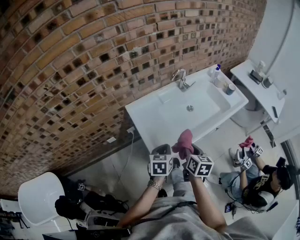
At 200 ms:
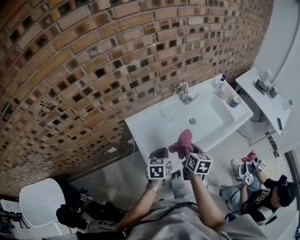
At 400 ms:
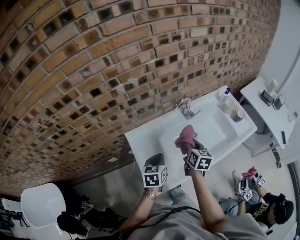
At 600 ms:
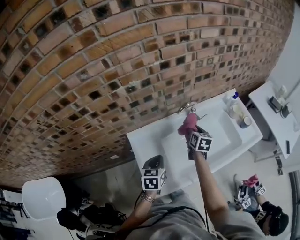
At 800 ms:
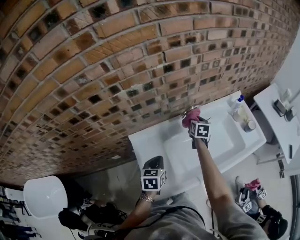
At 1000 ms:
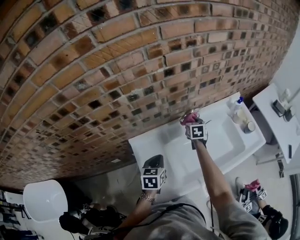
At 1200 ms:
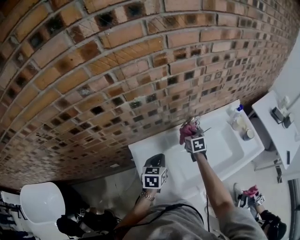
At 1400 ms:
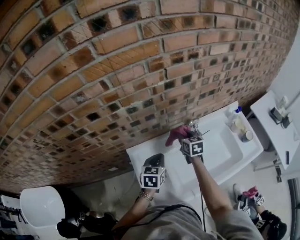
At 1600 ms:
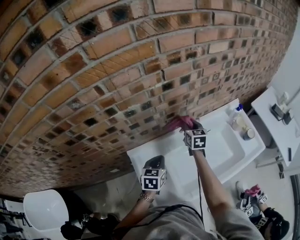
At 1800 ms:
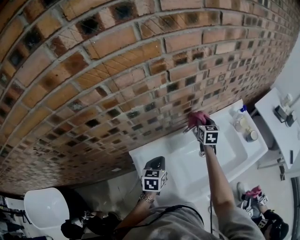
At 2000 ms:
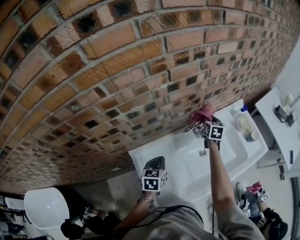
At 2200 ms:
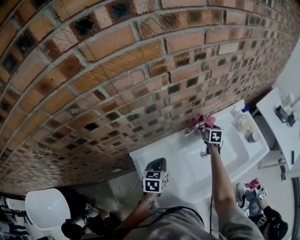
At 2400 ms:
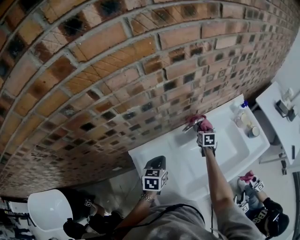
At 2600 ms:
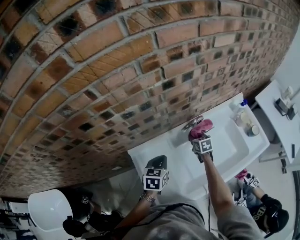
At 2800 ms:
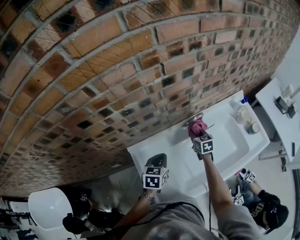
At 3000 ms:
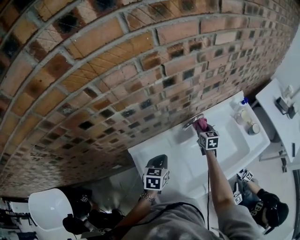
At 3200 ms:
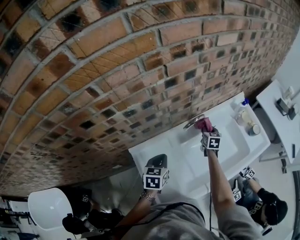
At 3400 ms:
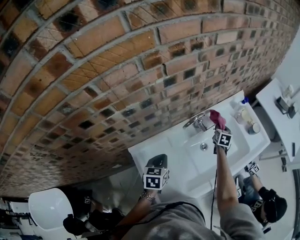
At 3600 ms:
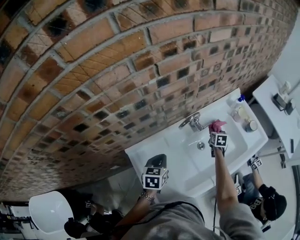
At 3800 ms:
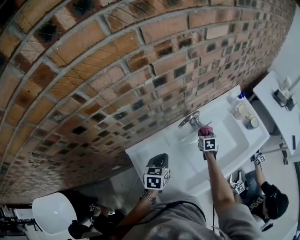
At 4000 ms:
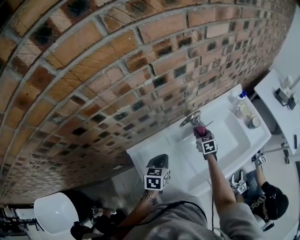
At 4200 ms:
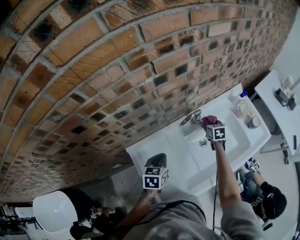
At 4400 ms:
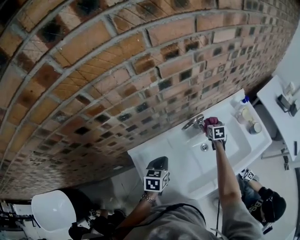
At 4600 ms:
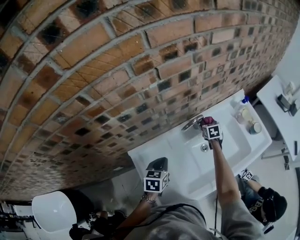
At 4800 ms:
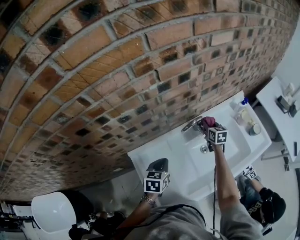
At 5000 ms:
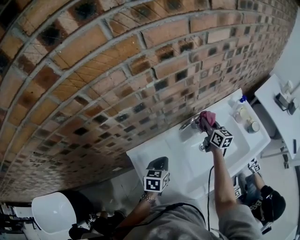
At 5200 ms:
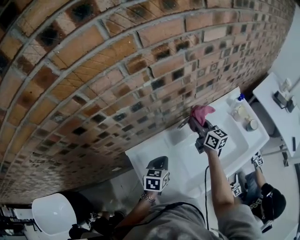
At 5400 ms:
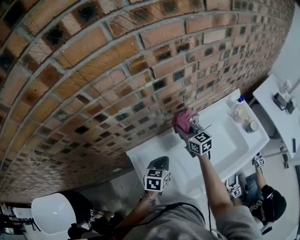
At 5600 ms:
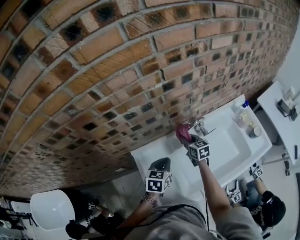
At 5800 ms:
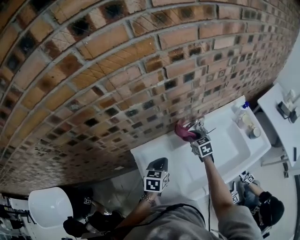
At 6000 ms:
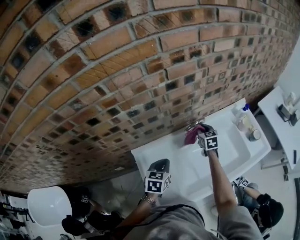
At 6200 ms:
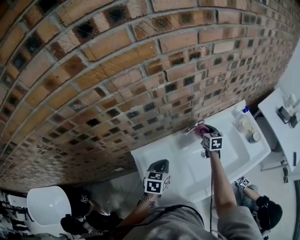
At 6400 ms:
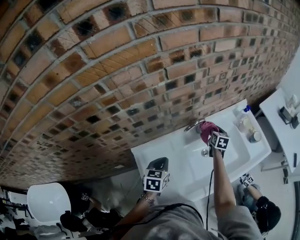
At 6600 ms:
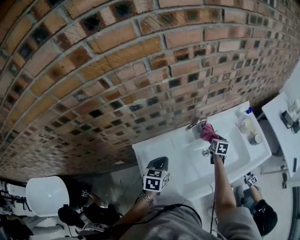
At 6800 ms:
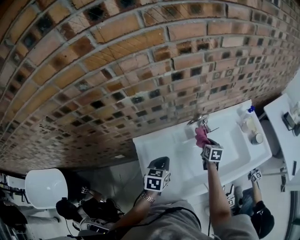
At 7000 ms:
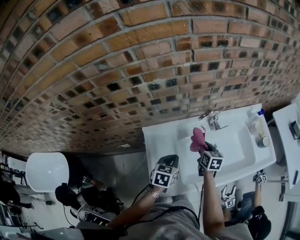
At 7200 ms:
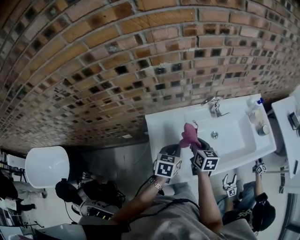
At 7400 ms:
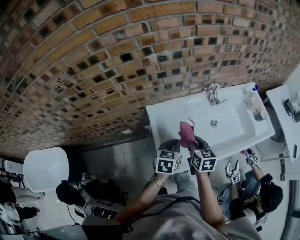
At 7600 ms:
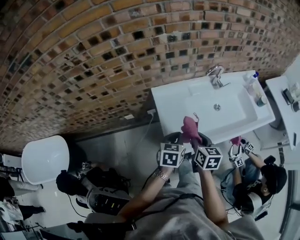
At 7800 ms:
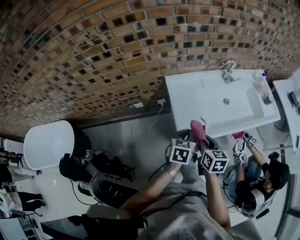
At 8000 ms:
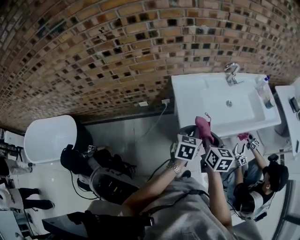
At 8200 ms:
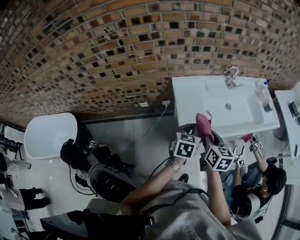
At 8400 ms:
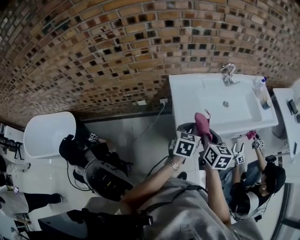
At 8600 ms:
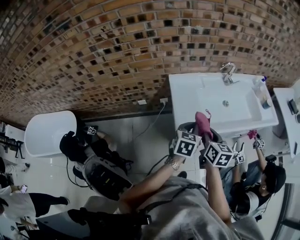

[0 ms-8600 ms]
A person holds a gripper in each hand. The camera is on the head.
0 ms to 1400 ms: The left gripper is displaced forward by roughly 30 cm. Meanwhile the right gripper shifts some 40 cm forward, and turns by some 30 degrees.
1400 ms to 2800 ms: The right gripper goes approximately 15 cm downward and to the right.
2800 ms to 4400 ms: The right gripper goes left and right, about 20 cm each way, reversing 2 times.
4400 ms to 5800 ms: The right gripper shifts approximately 20 cm to the left, backward and upward, and changes its angle by roughly 20 degrees.
5800 ms to 7200 ms: The right gripper shifts about 20 cm backward, while the left gripper shifts some 10 cm backward.
7200 ms to 8600 ms: The grippers both shift backward by some 25 cm.

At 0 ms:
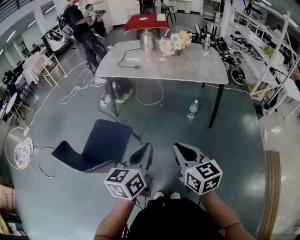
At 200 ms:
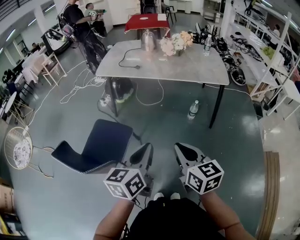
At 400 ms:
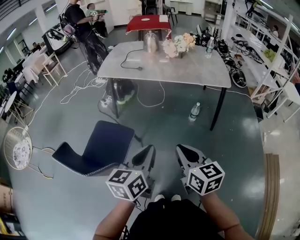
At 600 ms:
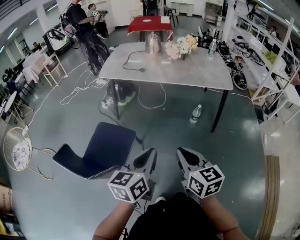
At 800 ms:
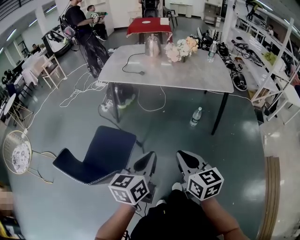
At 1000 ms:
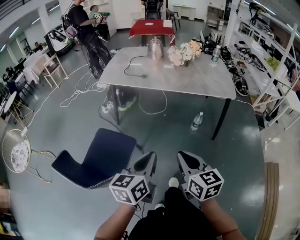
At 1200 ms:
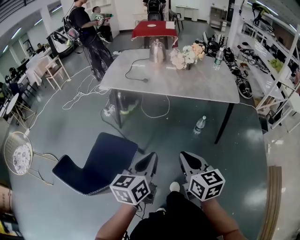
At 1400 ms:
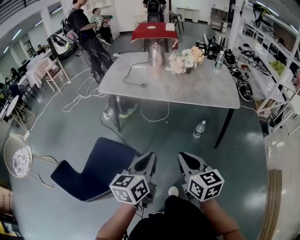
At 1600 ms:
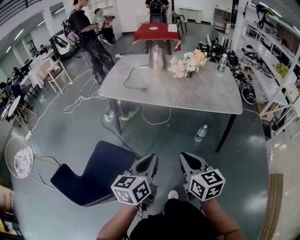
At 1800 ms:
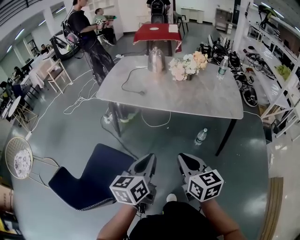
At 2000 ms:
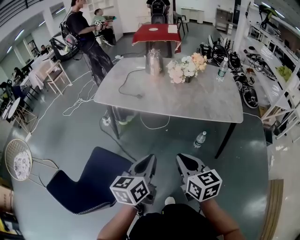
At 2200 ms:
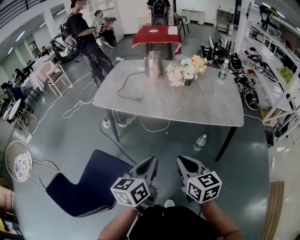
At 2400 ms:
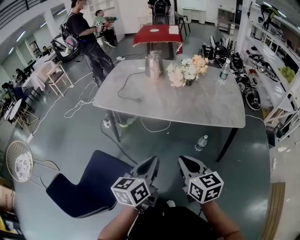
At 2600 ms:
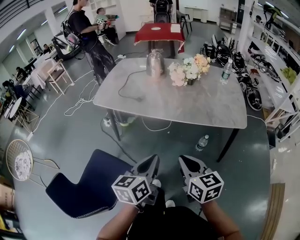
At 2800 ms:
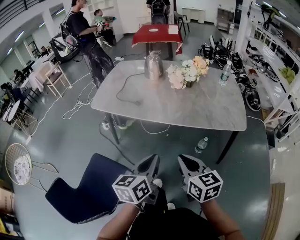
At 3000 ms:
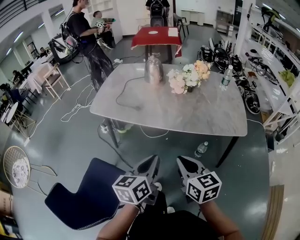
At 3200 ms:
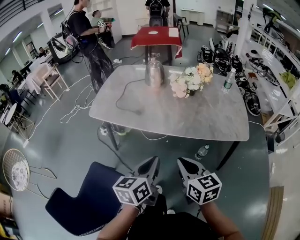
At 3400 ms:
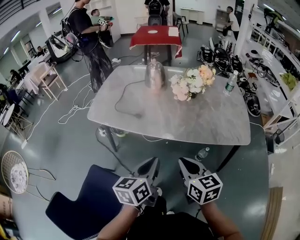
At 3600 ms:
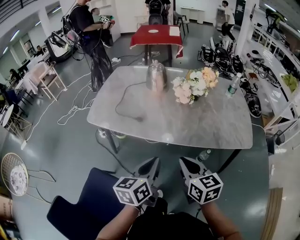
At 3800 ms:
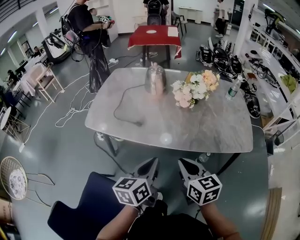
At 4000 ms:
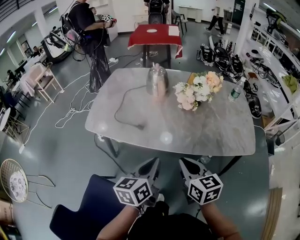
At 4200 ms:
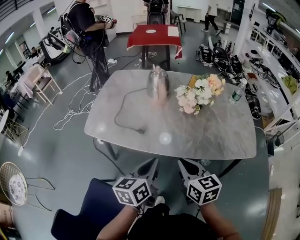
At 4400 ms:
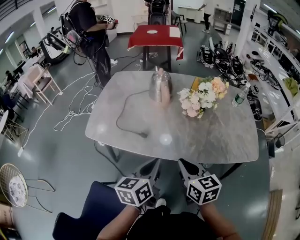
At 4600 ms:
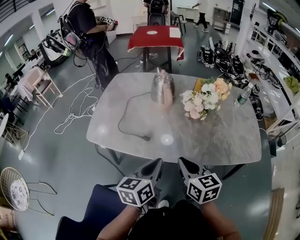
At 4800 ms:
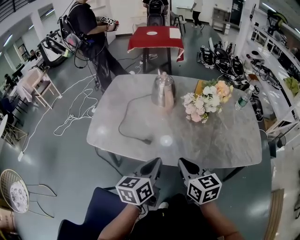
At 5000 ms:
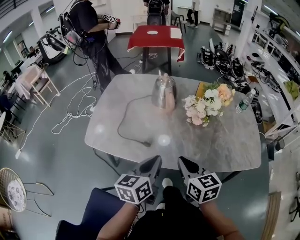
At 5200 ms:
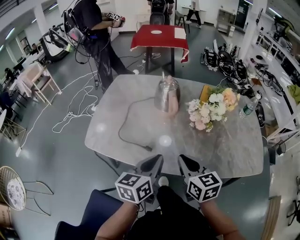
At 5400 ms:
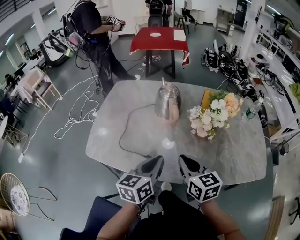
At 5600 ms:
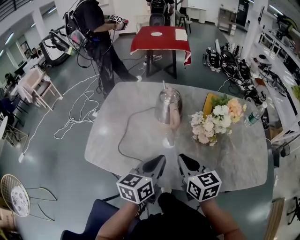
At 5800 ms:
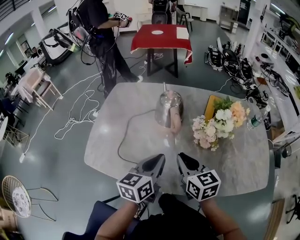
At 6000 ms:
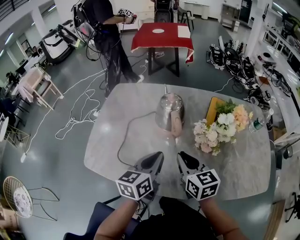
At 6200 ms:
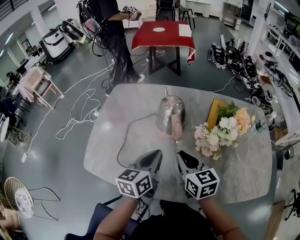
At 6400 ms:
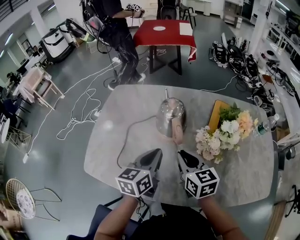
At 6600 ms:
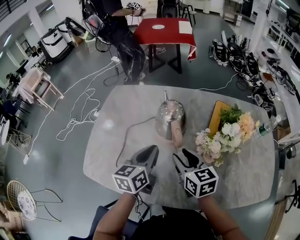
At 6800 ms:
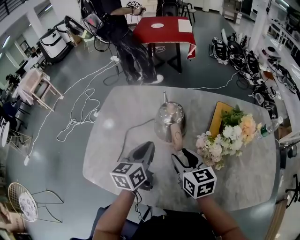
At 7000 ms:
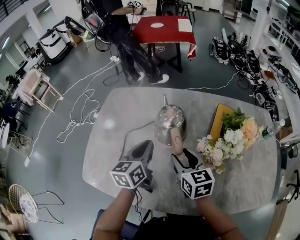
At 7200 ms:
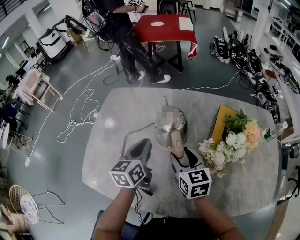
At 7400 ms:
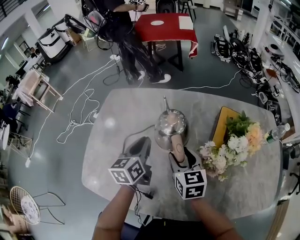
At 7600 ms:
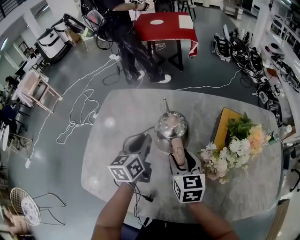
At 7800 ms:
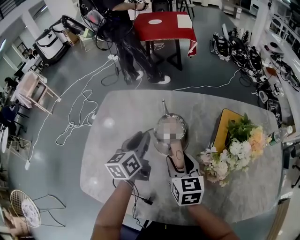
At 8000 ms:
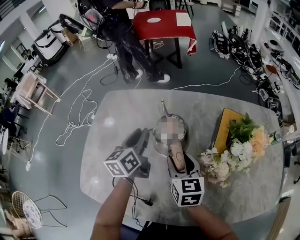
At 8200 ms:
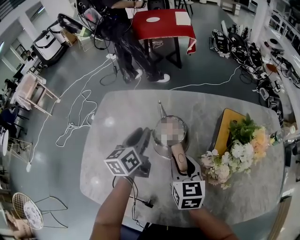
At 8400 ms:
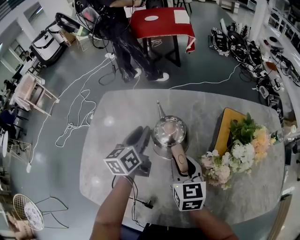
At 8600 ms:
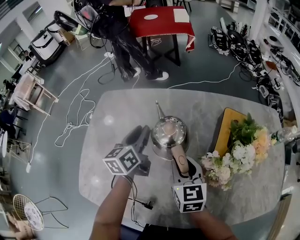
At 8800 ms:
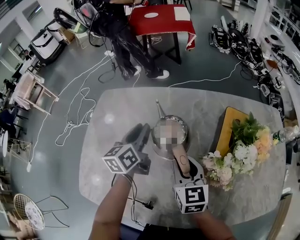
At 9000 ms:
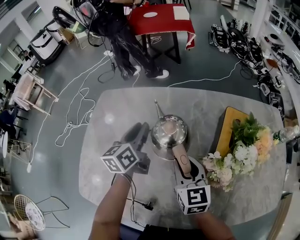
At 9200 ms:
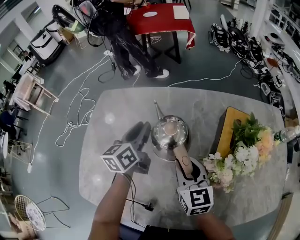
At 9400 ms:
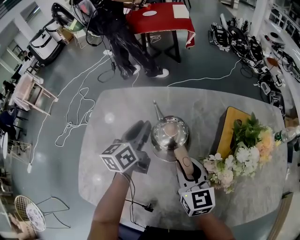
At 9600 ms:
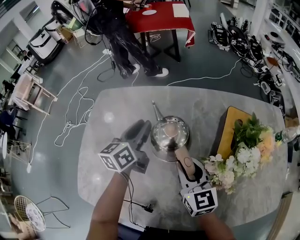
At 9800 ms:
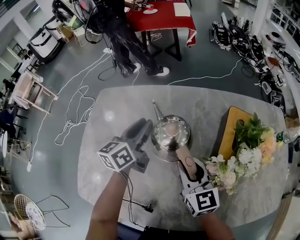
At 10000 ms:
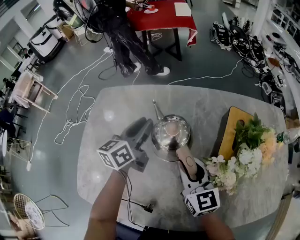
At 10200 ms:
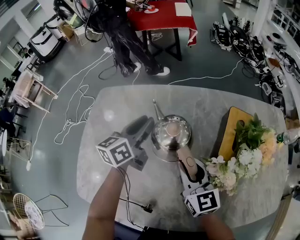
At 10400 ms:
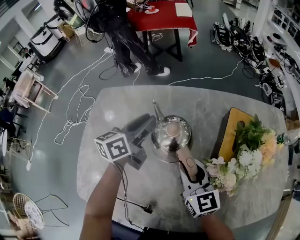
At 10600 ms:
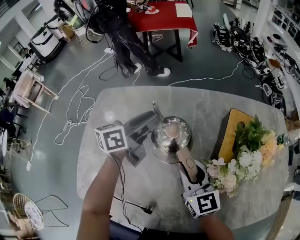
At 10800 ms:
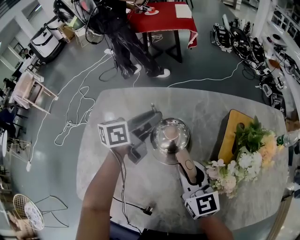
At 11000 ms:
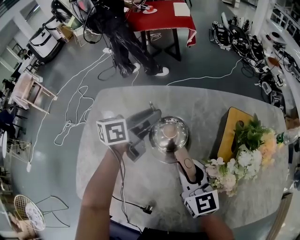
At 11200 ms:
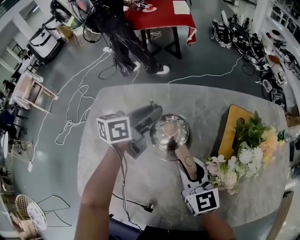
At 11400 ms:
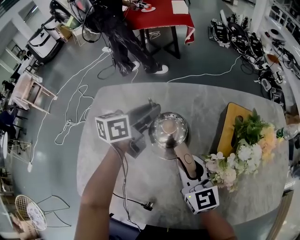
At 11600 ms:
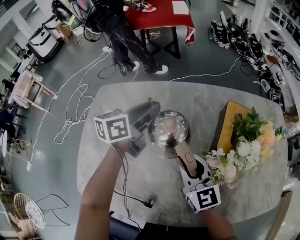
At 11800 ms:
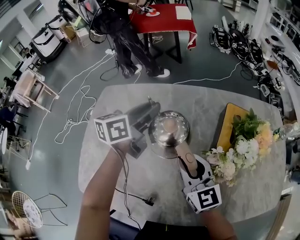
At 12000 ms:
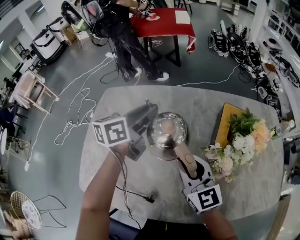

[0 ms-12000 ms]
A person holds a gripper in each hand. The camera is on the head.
0 ms to 1600 ms: The grippers both shift forward by approximately 20 cm.
1600 ms to 3000 ms: Both grippers move forward, roughly 15 cm.
3000 ms to 4400 ms: Both grippers move forward, about 20 cm.
4400 ms to 6000 ms: The two grippers go approximately 25 cm forward.
6000 ms to 7600 ms: The right gripper shifts about 15 cm forward and downward, and opens up. The left gripper goes some 20 cm forward.
7600 ms to 9000 ms: The left gripper moves forward, some 5 cm; the right gripper closes its fingers.
9000 ms to 10400 ms: The grippers stay close to where they were, moving slightly.
10400 ms to 12000 ms: Both grippers travel together upward, some 5 cm.

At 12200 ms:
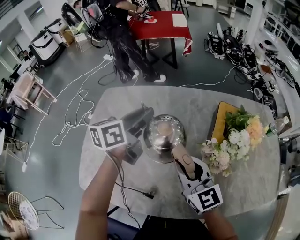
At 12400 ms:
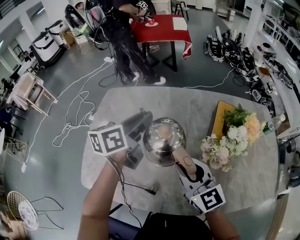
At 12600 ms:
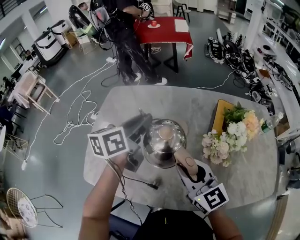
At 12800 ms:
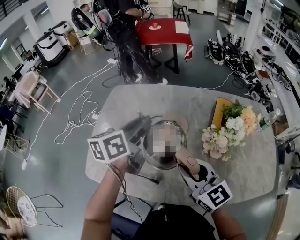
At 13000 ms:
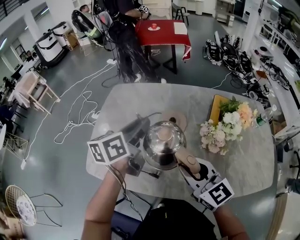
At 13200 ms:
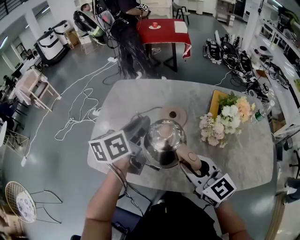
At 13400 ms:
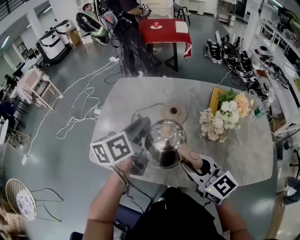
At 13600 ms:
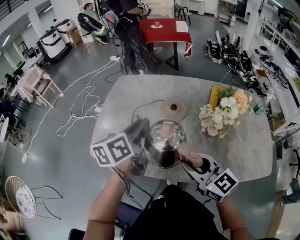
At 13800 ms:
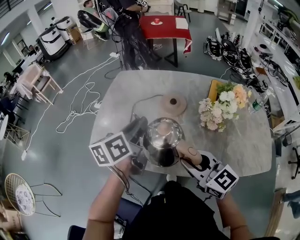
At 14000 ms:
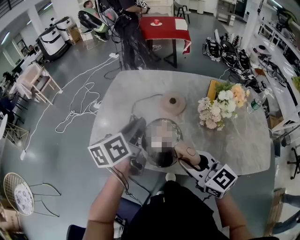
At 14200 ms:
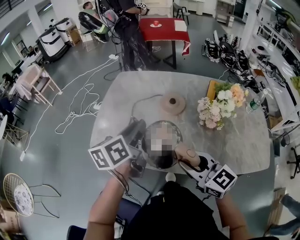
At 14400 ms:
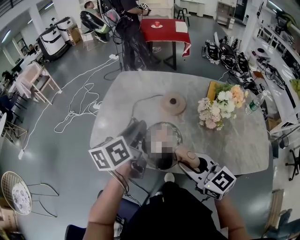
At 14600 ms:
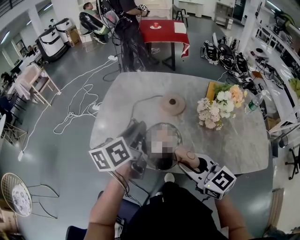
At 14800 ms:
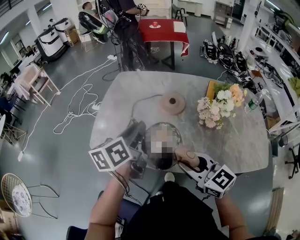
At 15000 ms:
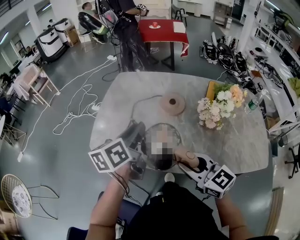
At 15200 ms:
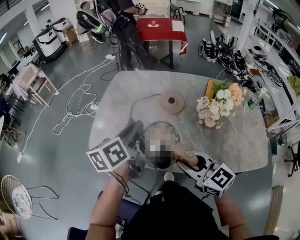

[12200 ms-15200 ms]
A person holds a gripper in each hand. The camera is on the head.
12200 ms to 13800 ms: The grippers both shift backward by about 25 cm.
13800 ms to 15200 ms: There are only small adjustments of the grippers.
